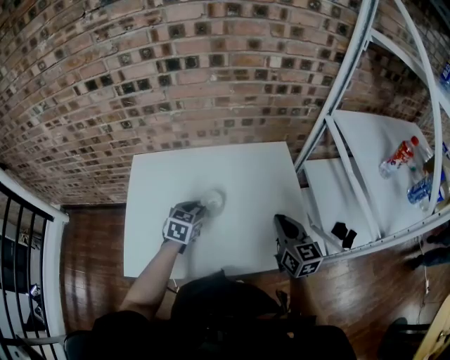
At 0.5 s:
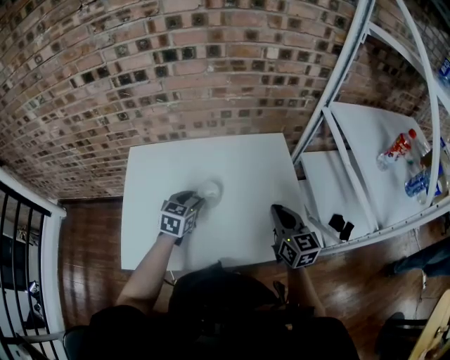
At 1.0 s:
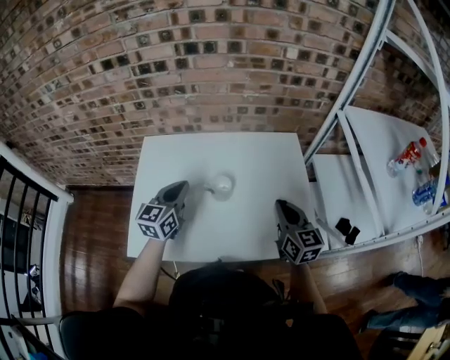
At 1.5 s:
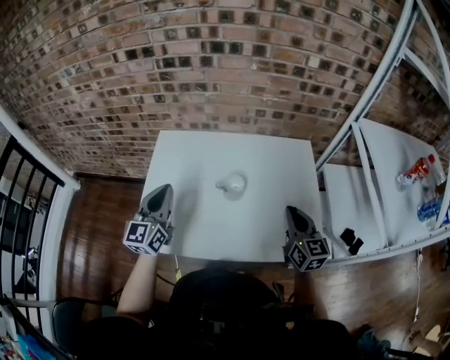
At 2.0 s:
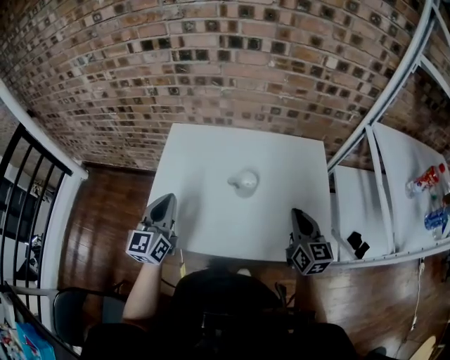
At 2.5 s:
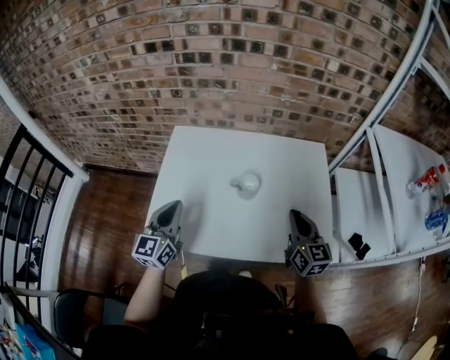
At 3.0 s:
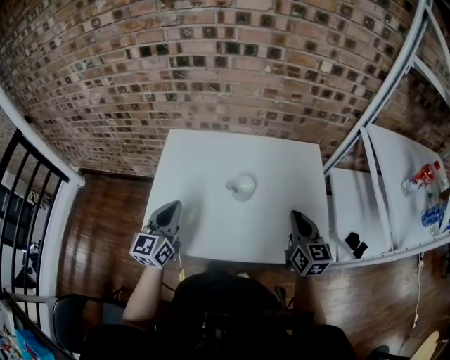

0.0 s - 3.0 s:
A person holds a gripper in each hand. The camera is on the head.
0.0 s - 1.5 s: The left gripper heads to the left, upward and backward, covering some 25 cm, angles its fingers upward, by approximately 40 degrees, and closes its fingers.
1.5 s - 3.0 s: The left gripper changes place by some 5 cm.

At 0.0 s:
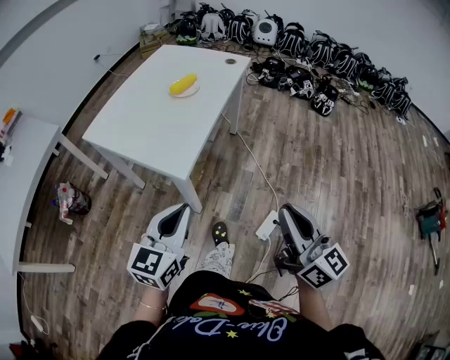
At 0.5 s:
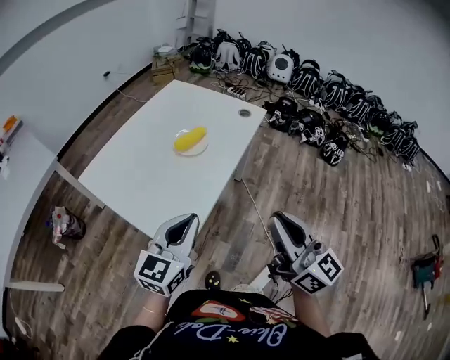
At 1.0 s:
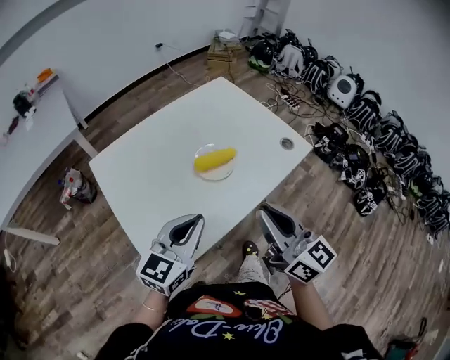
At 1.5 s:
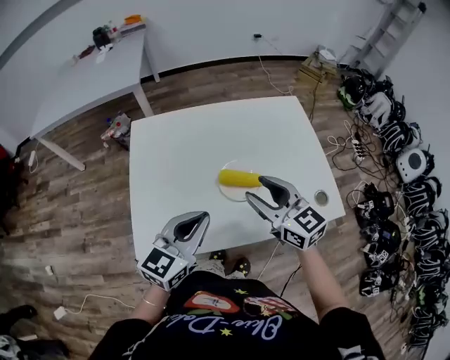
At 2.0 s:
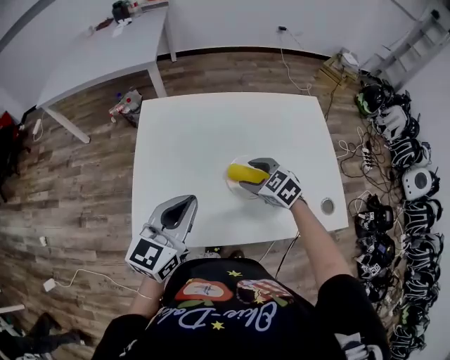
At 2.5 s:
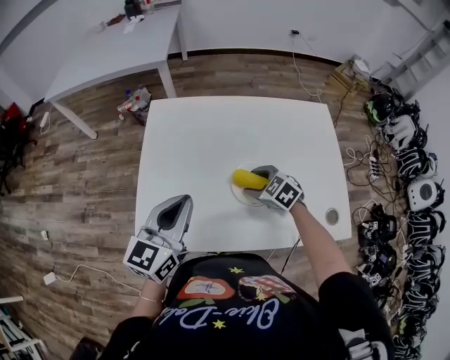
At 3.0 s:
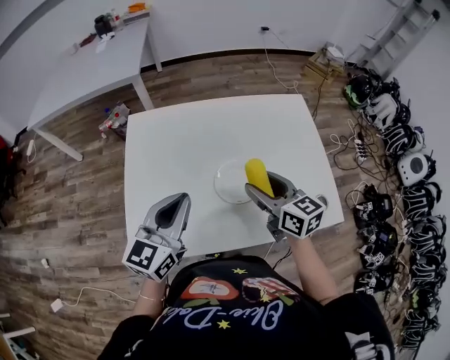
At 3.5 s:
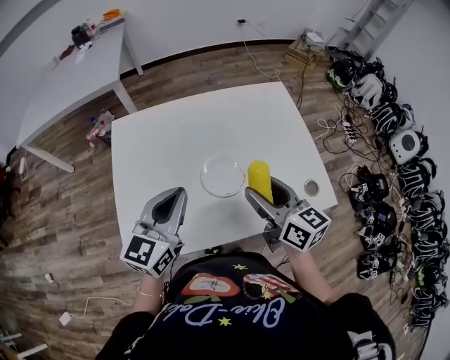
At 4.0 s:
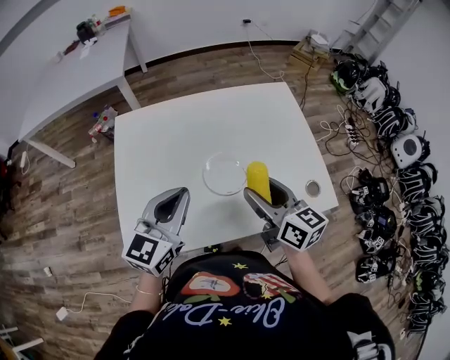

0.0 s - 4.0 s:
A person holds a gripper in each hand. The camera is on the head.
0.0 s - 2.0 s: The two grippers travel together, roughly 60 cm. The right gripper tips its fingers downward by roughly 50 degrees, and opens its fingers; the left gripper swivels about 60 degrees.
2.0 s - 4.0 s: The right gripper is displaced upward, backward and to the right by about 15 cm, and tips its fingers upward by about 40 degrees.

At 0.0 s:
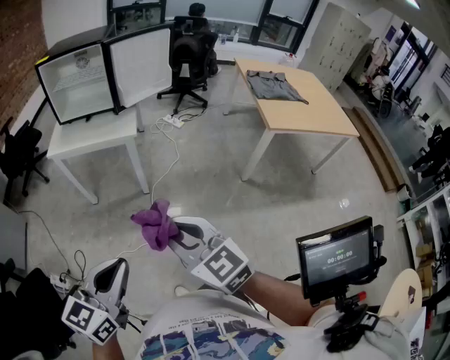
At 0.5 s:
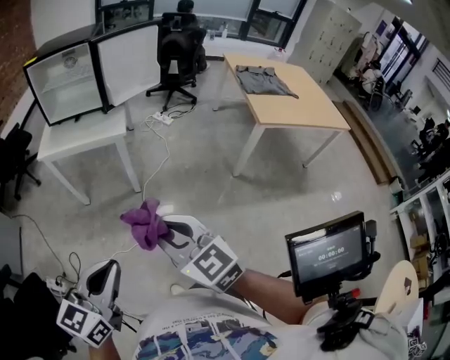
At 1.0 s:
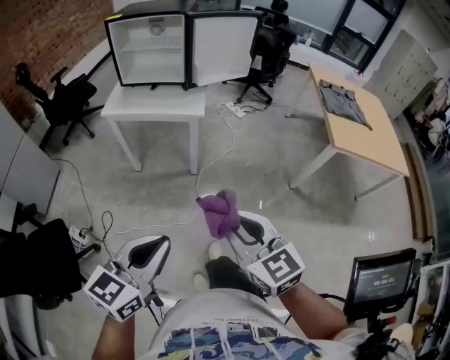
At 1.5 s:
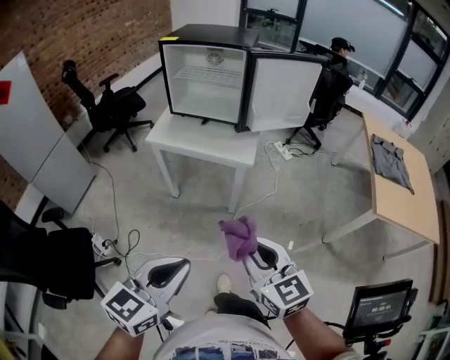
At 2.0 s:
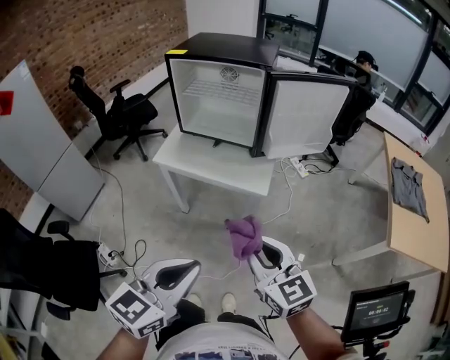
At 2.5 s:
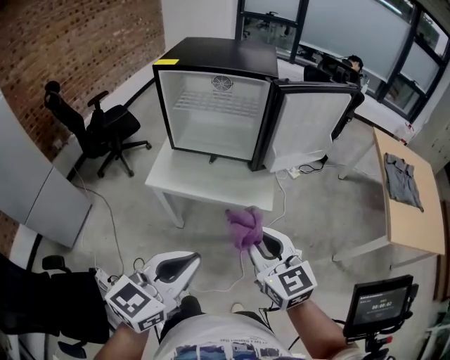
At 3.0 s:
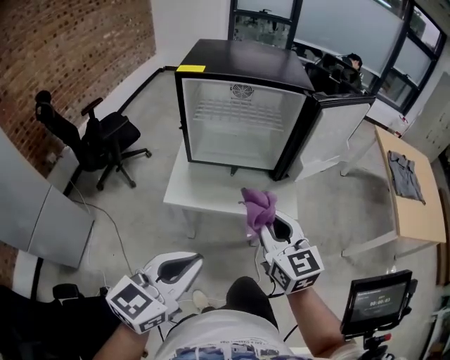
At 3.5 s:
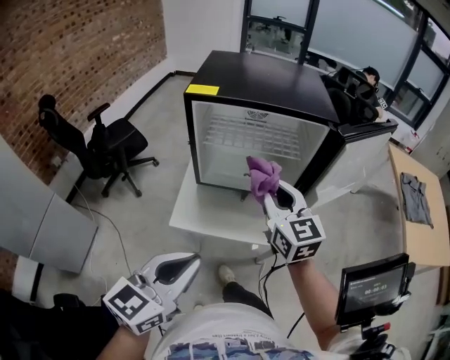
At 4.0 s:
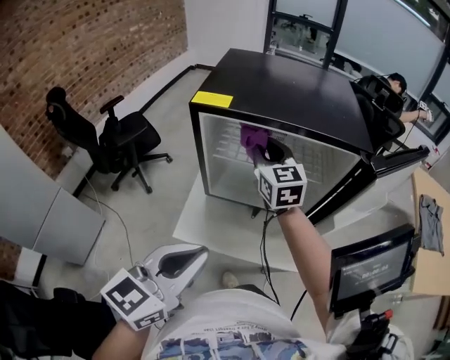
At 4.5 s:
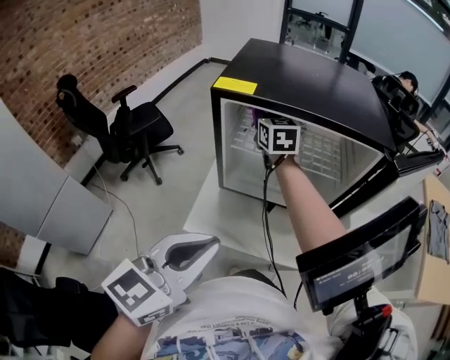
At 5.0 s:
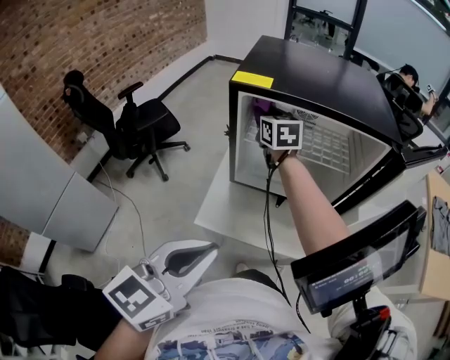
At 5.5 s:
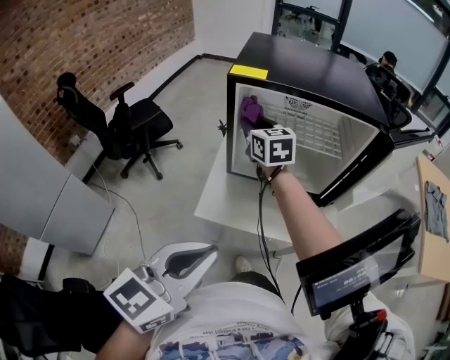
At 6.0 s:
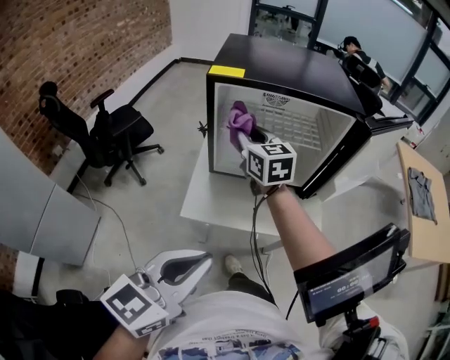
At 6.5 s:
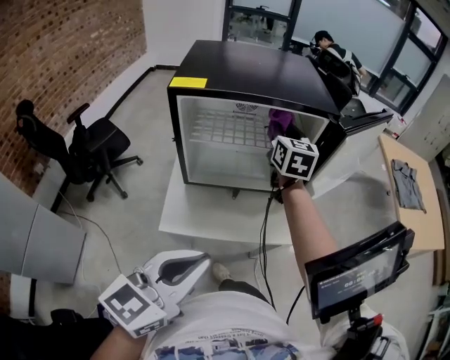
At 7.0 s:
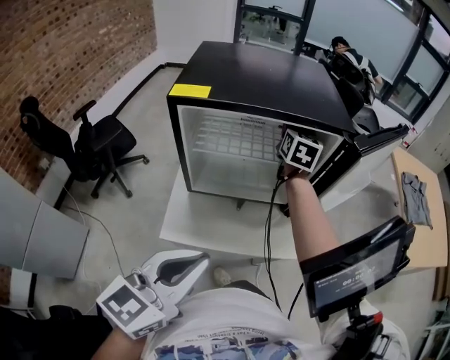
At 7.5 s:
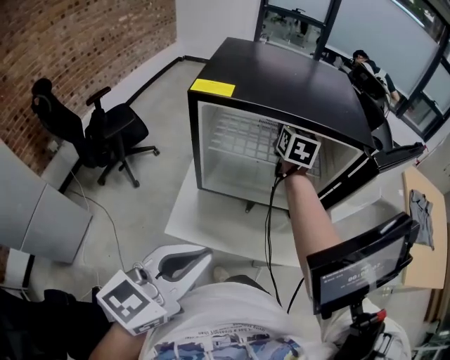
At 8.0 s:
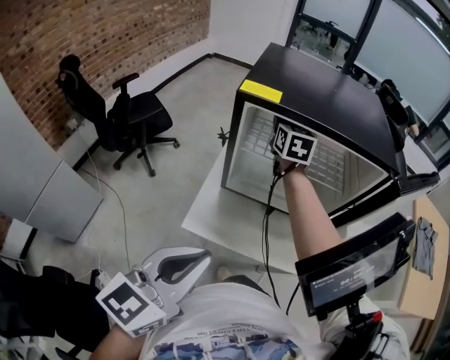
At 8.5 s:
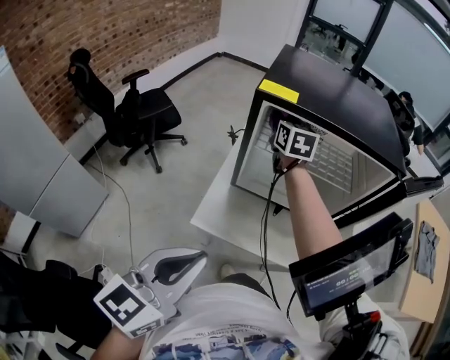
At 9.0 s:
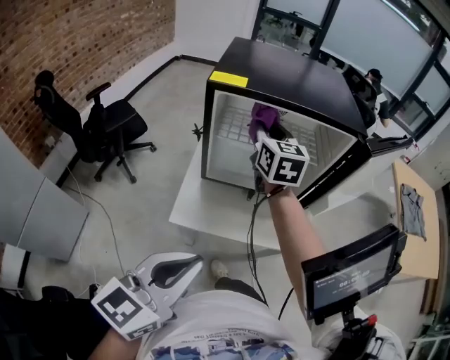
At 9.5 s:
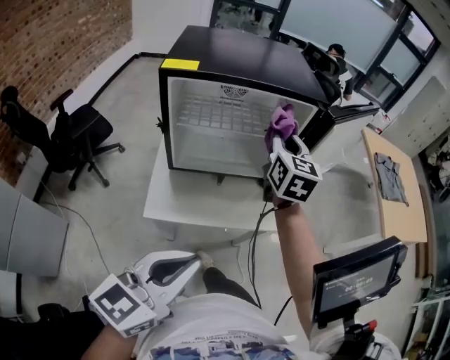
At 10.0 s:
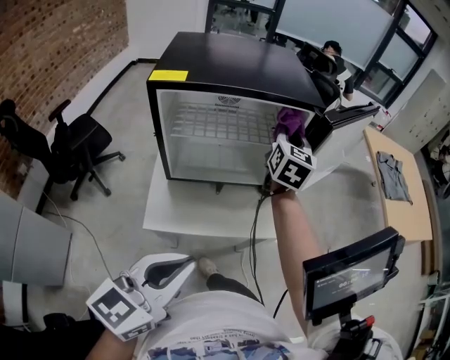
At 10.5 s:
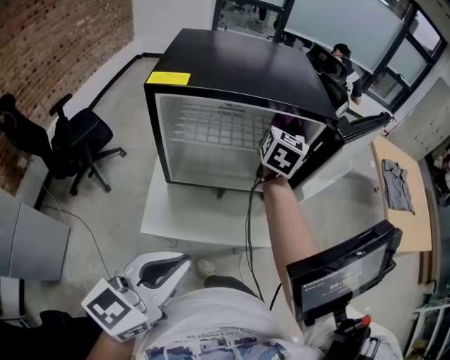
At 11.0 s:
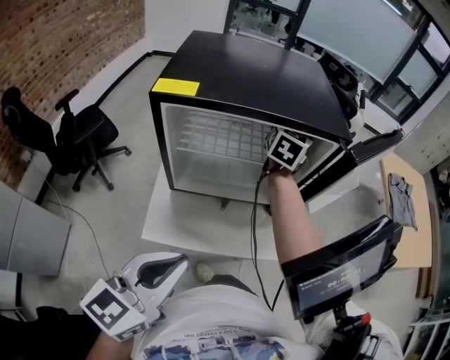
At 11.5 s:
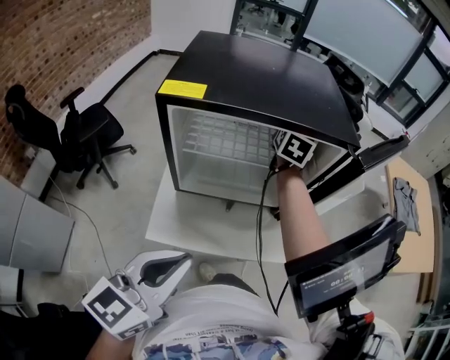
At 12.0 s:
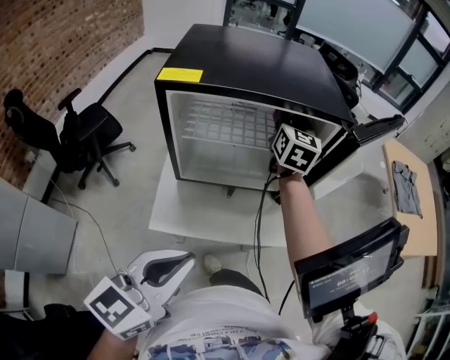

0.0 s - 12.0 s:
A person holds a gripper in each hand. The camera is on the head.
0.0 s - 2.0 s: The two grippers go about 25 cm forward.
2.0 s - 4.0 s: The right gripper travels forward and to the left by about 60 cm. The left gripper is displaced forward and to the left by approximately 40 cm.
4.0 s - 6.0 s: The right gripper goes some 5 cm backward; the left gripper shifts about 10 cm backward.
6.0 s - 8.0 s: The right gripper travels forward by roughly 15 cm, and travels to the right and back again, some 20 cm each way. The left gripper shifts about 5 cm forward.
8.0 s - 10.0 s: The left gripper ends up roughly 5 cm from where it was, while the right gripper shifts by approximately 30 cm, and rotates approximately 30 degrees.
10.0 s - 12.0 s: The right gripper goes some 10 cm to the left and forward.

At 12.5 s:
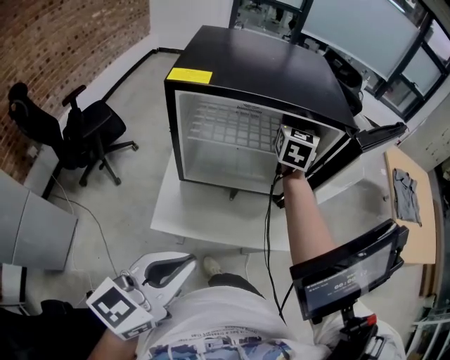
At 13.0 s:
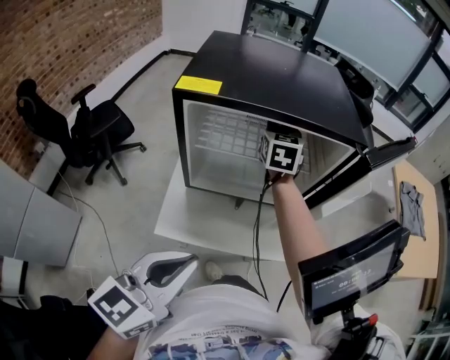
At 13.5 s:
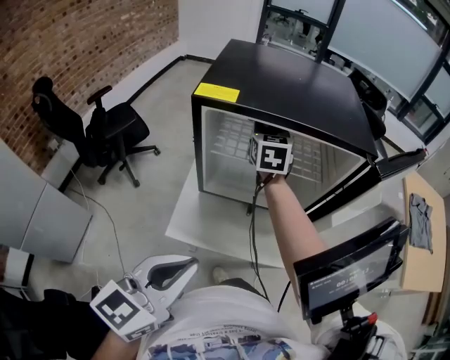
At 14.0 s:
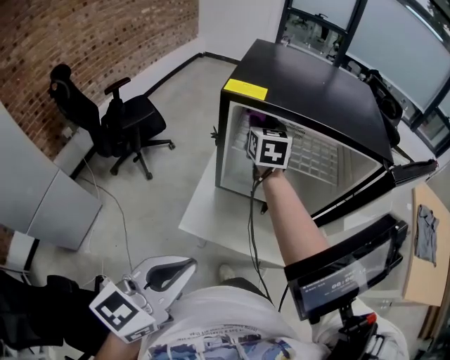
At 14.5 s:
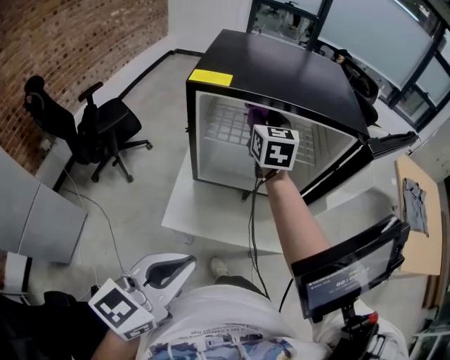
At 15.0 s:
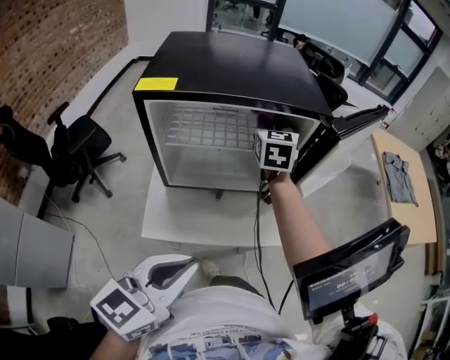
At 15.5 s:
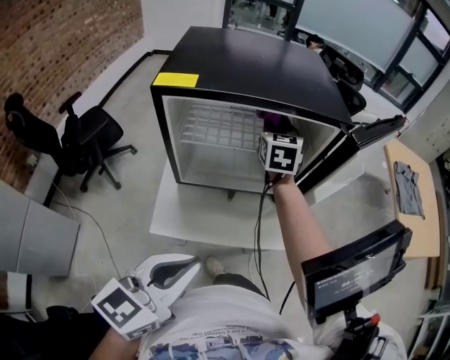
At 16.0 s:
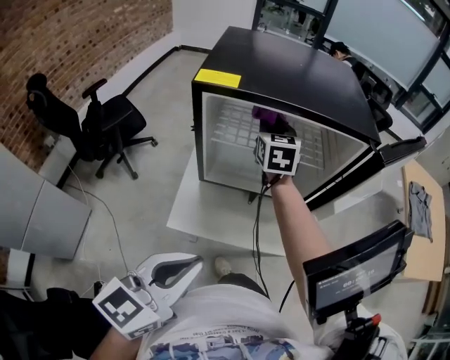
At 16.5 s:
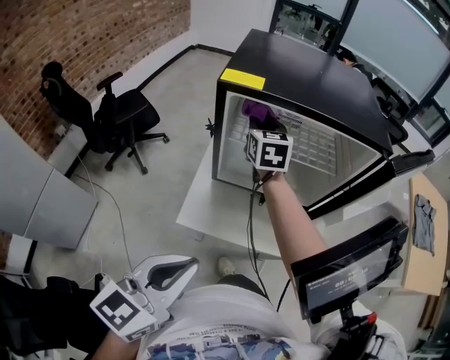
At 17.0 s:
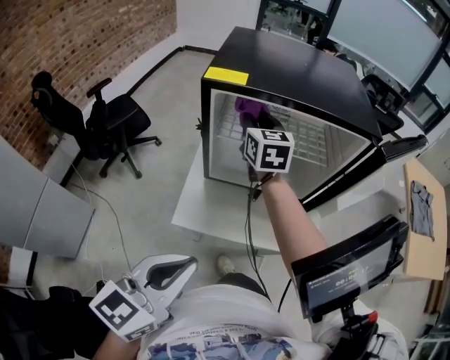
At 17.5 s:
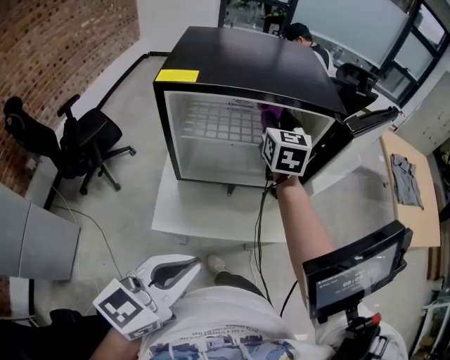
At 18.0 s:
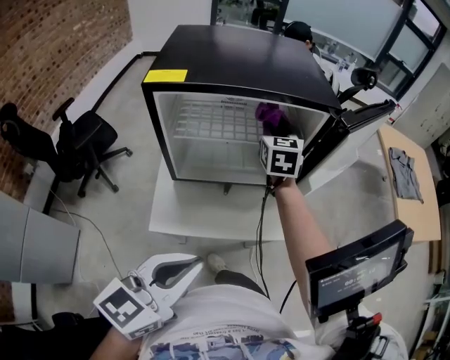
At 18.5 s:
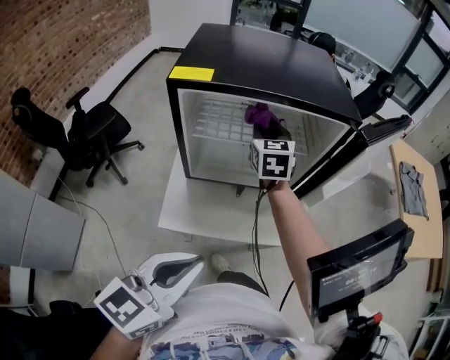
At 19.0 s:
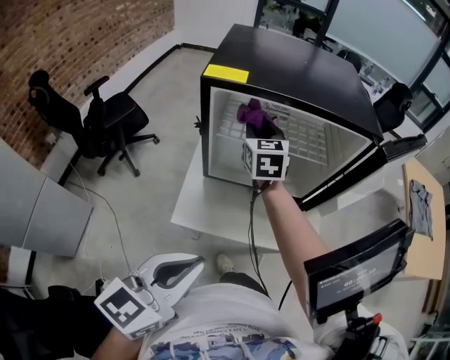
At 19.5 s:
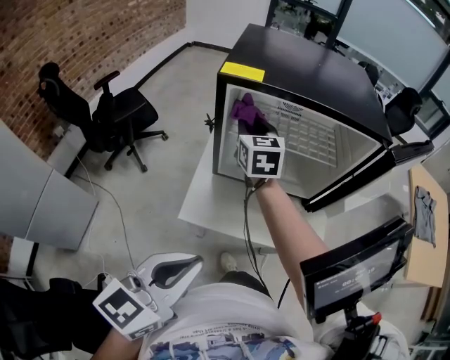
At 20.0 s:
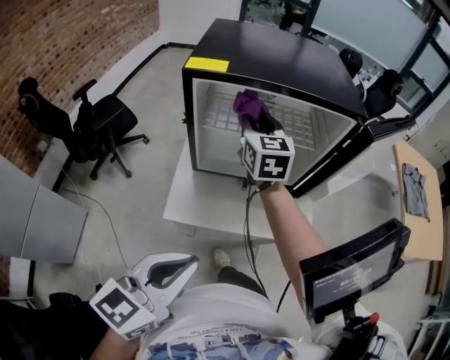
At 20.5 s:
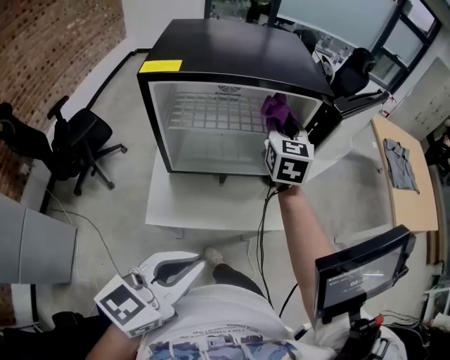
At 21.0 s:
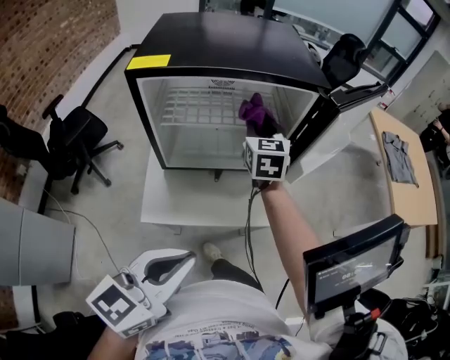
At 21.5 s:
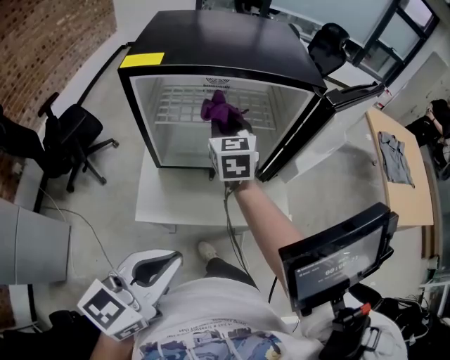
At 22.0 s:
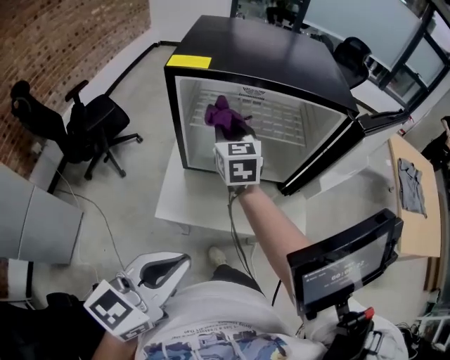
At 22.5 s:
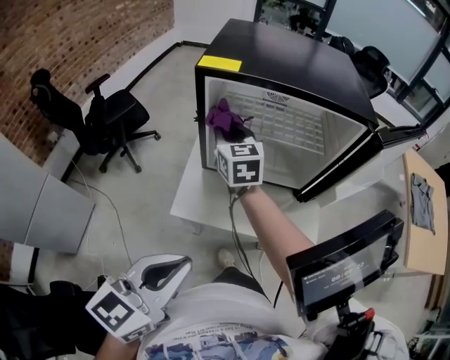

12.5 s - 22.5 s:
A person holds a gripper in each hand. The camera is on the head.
12.5 s - 14.5 s: The right gripper travels to the left by roughly 15 cm, and turns by approximately 20 degrees.
14.5 s - 16.5 s: The right gripper travels to the right and back again, approximately 15 cm each way.
16.5 s - 18.5 s: The right gripper goes approximately 10 cm to the right.
18.5 s - 20.5 s: The right gripper shifts about 10 cm to the right.
20.5 s - 22.5 s: The left gripper travels to the left by approximately 5 cm. Meanwhile the right gripper moves to the left, some 25 cm, and swivels about 30 degrees.
